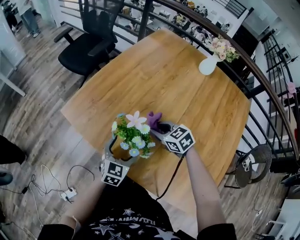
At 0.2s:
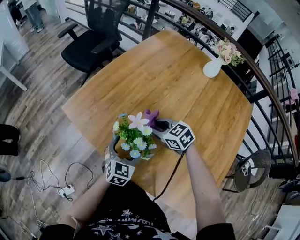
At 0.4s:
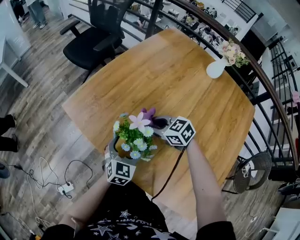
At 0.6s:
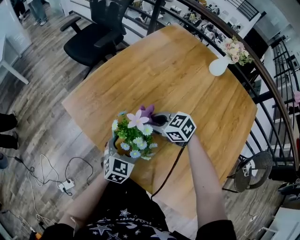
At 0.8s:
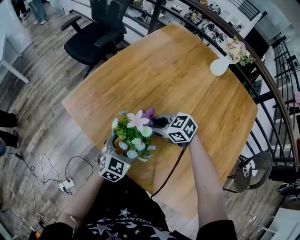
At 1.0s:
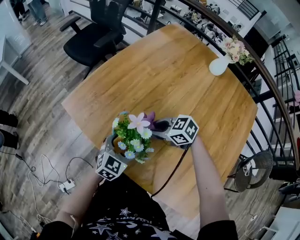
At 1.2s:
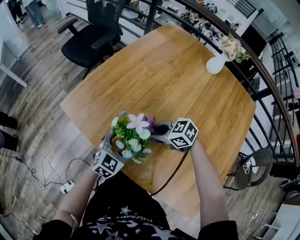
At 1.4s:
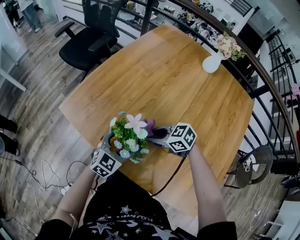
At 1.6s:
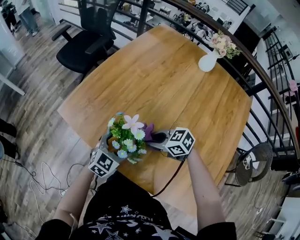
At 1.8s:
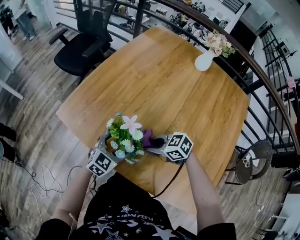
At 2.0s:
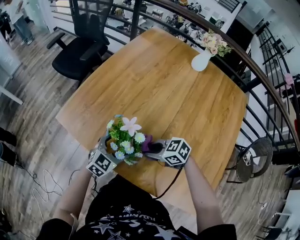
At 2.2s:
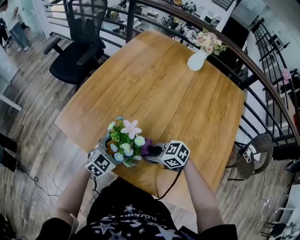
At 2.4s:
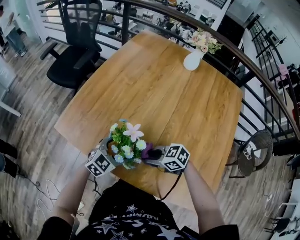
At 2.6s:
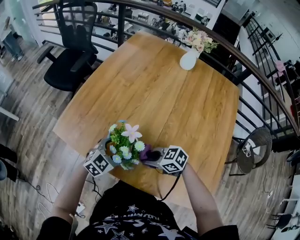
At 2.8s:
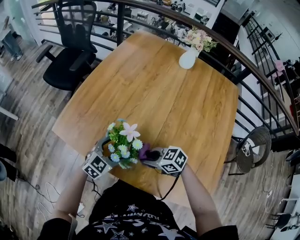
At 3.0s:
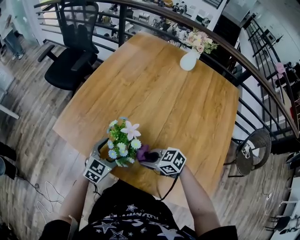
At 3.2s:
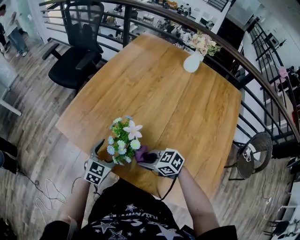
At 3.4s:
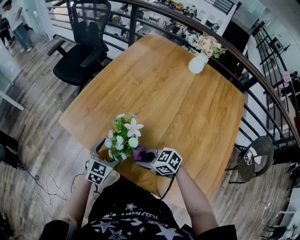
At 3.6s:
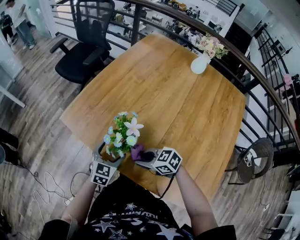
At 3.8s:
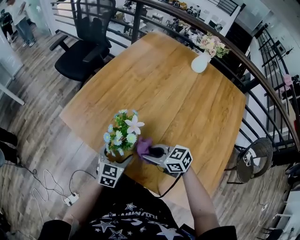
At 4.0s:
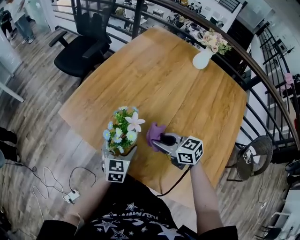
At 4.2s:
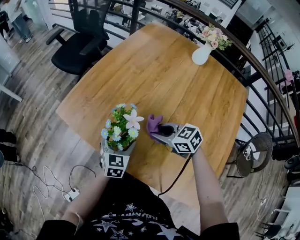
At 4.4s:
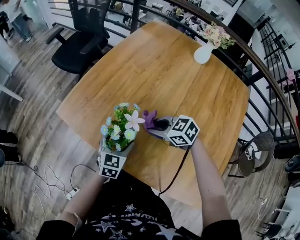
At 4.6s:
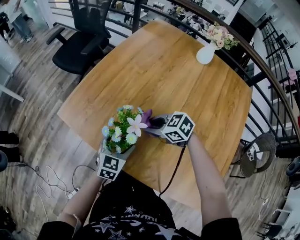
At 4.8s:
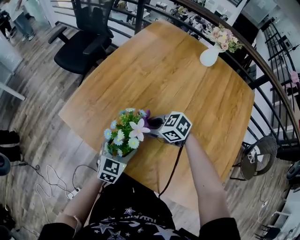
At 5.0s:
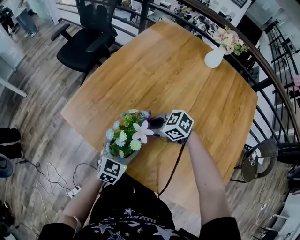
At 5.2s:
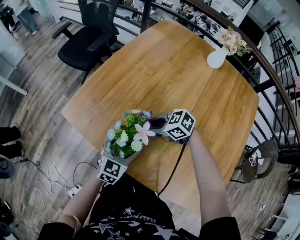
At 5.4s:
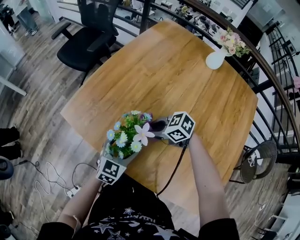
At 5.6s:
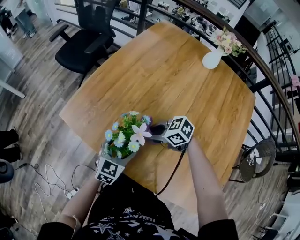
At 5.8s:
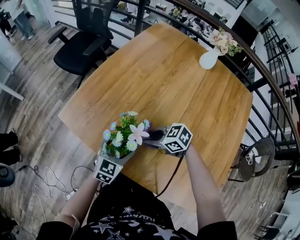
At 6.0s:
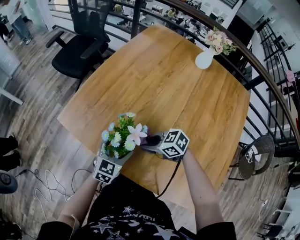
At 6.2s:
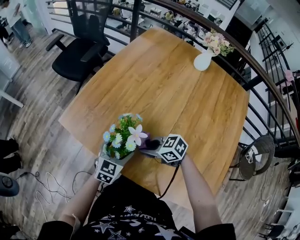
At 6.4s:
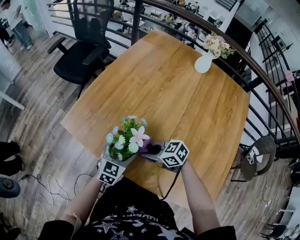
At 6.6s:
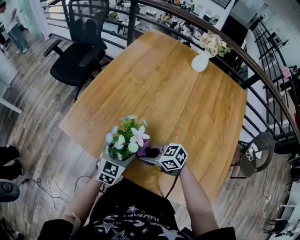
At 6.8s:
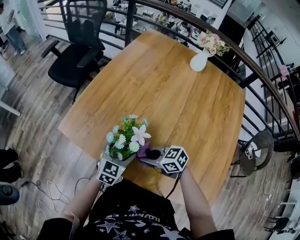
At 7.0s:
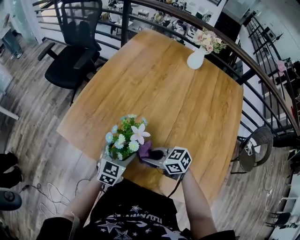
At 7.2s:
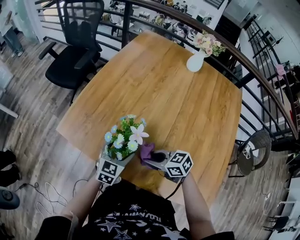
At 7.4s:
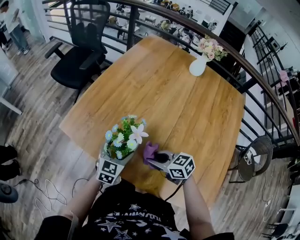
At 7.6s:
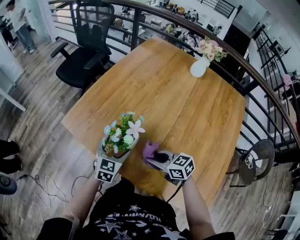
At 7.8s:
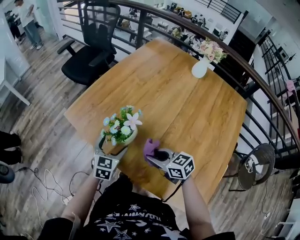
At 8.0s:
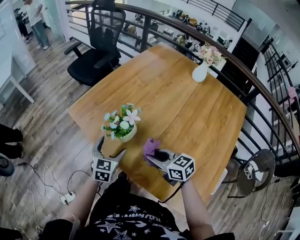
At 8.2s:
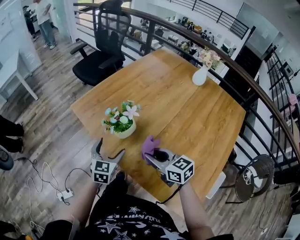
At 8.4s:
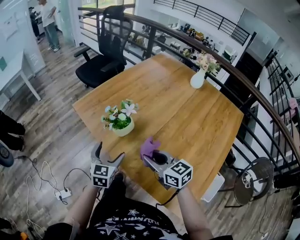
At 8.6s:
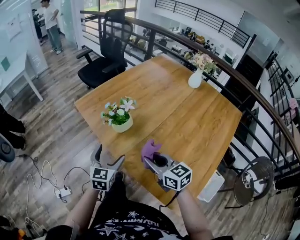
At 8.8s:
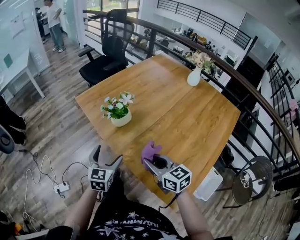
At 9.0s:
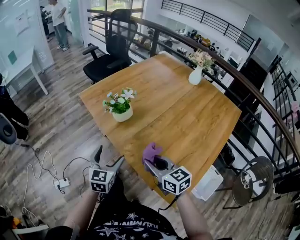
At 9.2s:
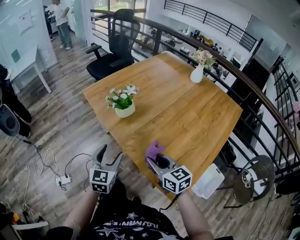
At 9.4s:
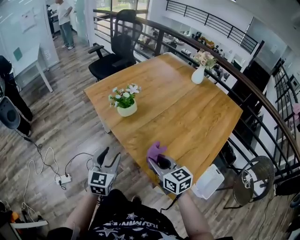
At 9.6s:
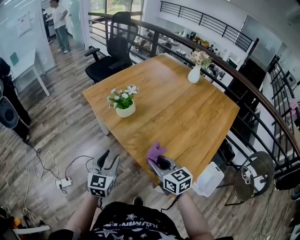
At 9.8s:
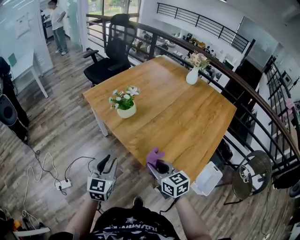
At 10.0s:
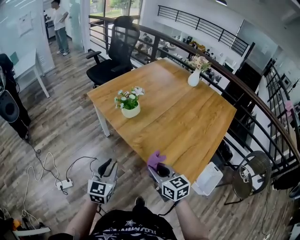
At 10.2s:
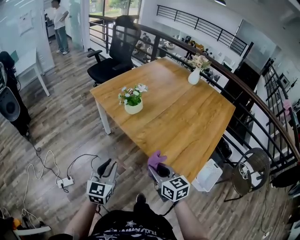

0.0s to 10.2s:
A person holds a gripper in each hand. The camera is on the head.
0.0s to 1.4s: The right gripper changes place by approximately 5 cm, and rotates about 20 degrees.
1.4s to 3.0s: The right gripper shifts by some 10 cm.
3.0s to 4.4s: The right gripper goes some 10 cm forward; the left gripper swivels about 20 degrees.
4.4s to 5.8s: The right gripper ends up roughly 5 cm from where it was.
5.8s to 7.2s: The right gripper shifts about 5 cm backward, and turns by approximately 20 degrees.
7.2s to 8.8s: The left gripper travels backward by some 20 cm, and swivels roughly 40 degrees, while the right gripper shifts about 25 cm backward and upward, and swivels some 20 degrees.
8.8s to 10.2s: Both grippers travel together backward and to the left, roughly 20 cm. The left gripper closes its fingers.

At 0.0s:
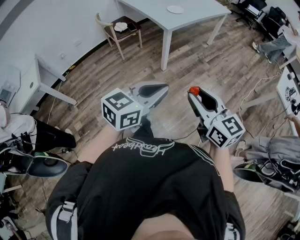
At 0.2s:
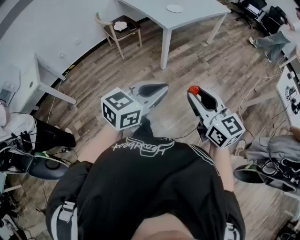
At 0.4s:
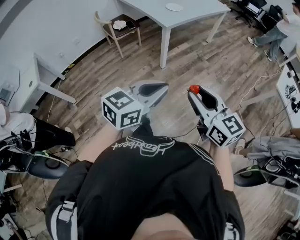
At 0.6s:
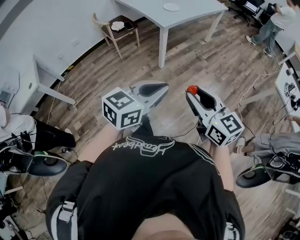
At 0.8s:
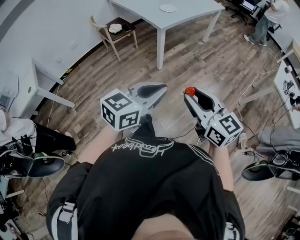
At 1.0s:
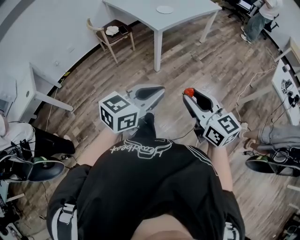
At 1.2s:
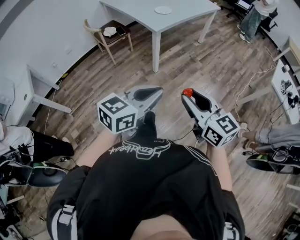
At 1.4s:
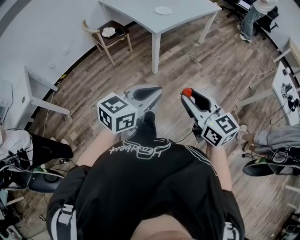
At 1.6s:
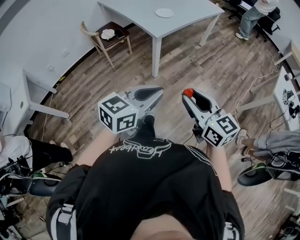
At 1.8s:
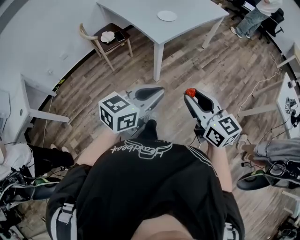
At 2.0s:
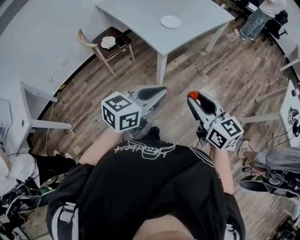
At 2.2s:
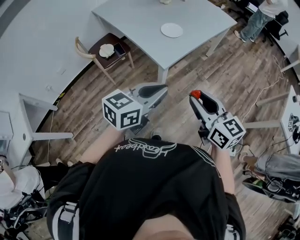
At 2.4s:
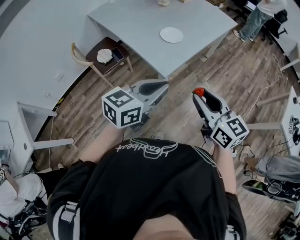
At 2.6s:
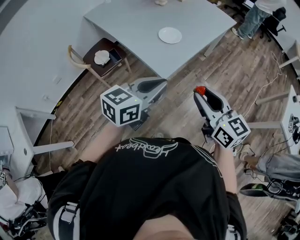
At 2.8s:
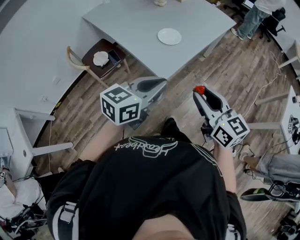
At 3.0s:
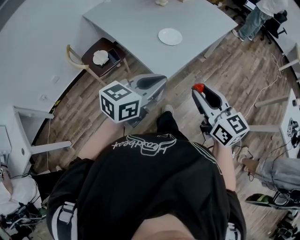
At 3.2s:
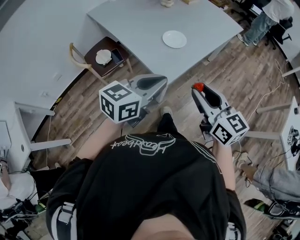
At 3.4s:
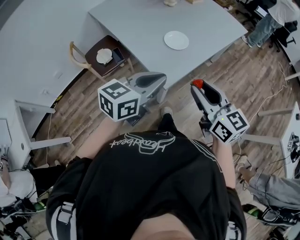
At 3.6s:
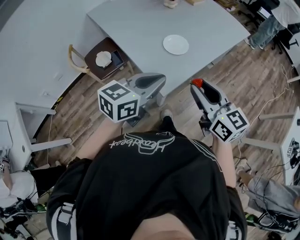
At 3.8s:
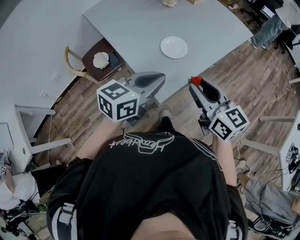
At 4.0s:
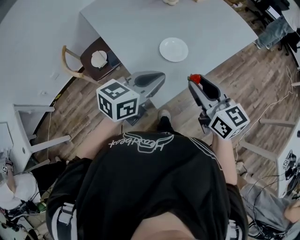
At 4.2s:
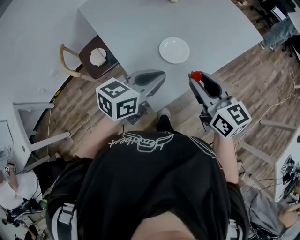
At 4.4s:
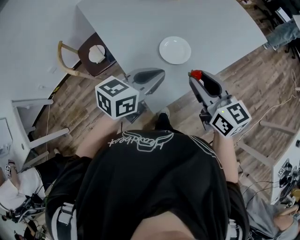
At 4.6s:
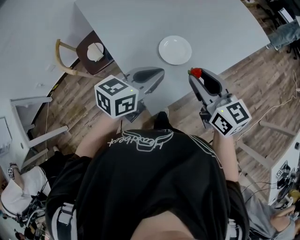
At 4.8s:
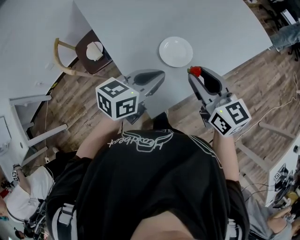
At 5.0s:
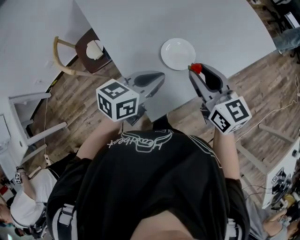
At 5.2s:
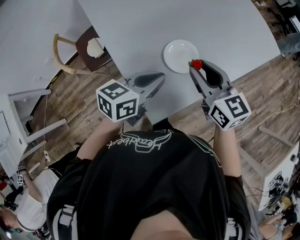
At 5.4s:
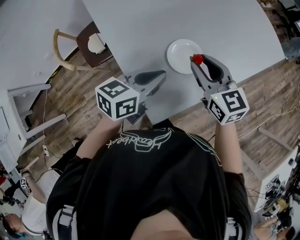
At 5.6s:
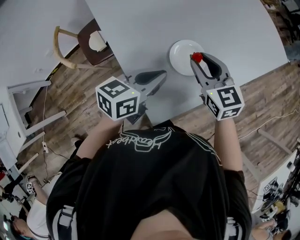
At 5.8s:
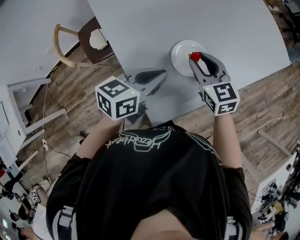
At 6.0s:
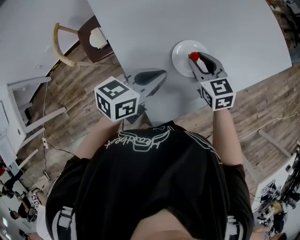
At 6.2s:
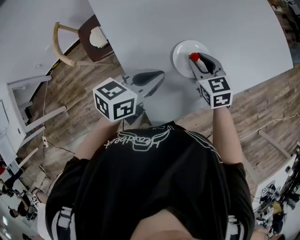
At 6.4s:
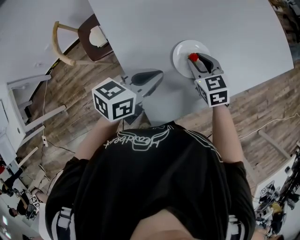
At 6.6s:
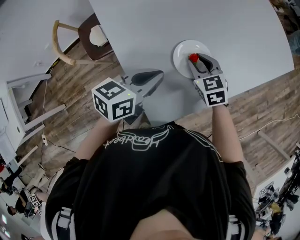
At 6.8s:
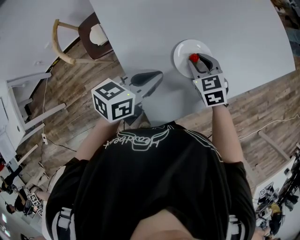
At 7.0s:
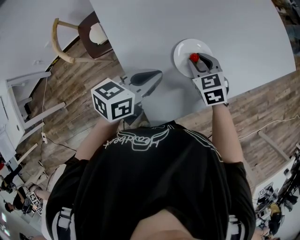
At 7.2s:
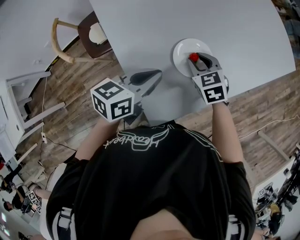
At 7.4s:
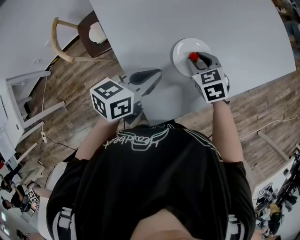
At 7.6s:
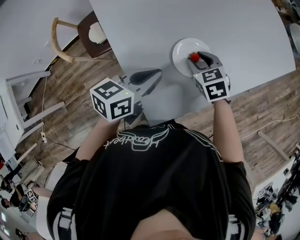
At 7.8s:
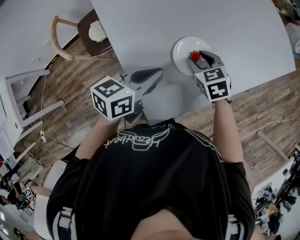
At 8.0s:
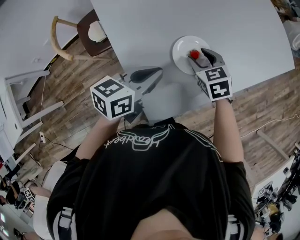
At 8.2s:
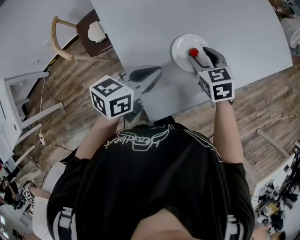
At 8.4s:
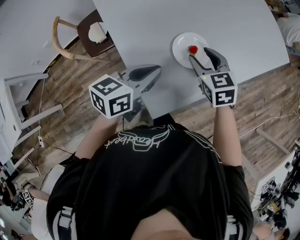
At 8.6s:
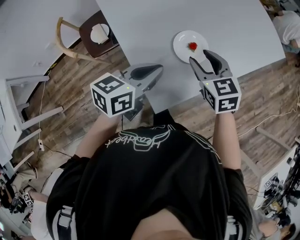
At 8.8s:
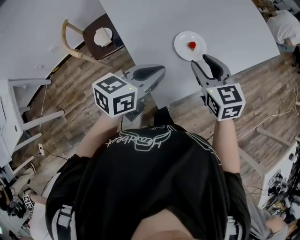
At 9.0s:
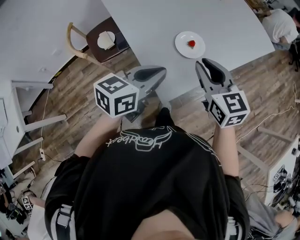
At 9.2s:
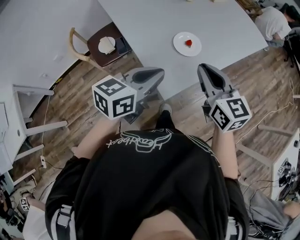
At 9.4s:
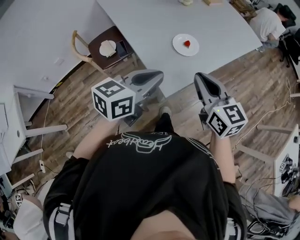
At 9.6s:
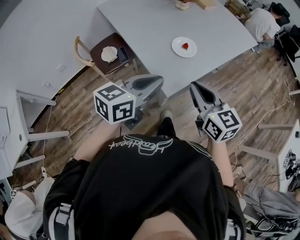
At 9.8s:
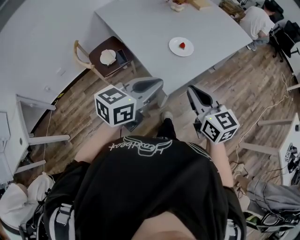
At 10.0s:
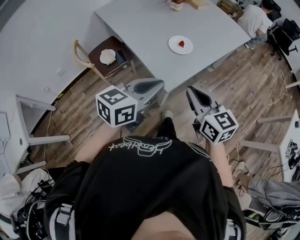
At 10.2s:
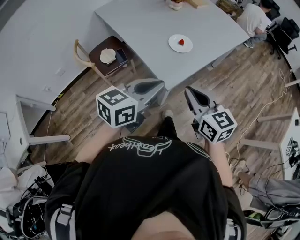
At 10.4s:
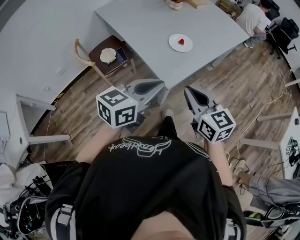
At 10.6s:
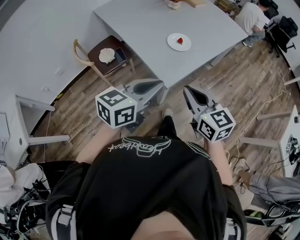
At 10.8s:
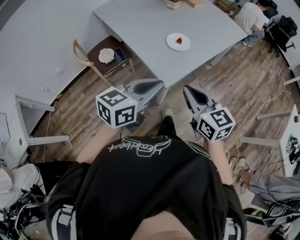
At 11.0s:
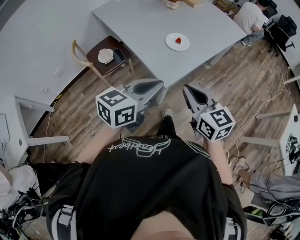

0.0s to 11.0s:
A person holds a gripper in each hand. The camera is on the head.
0.0s to 1.6s: The two grippers go about 10 cm forward.
1.6s to 3.2s: The two grippers travel together, forward, some 40 cm.
3.2s to 4.8s: The grippers both shift forward by about 30 cm.
4.8s to 6.2s: The left gripper travels downward and forward by roughly 10 cm. Meanwhile the right gripper shifts about 20 cm downward and forward, and rotates approximately 30 degrees.
6.2s to 7.8s: The grippers move only a little.
7.8s to 9.4s: Both grippers move backward and upward, some 30 cm. The right gripper tilts its fingers roughly 40 degrees upward, and closes its fingers.
9.4s to 11.0s: The two grippers go some 10 cm backward.

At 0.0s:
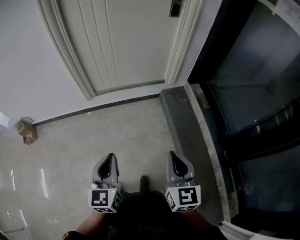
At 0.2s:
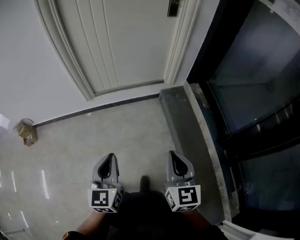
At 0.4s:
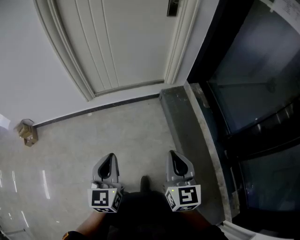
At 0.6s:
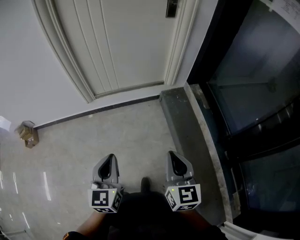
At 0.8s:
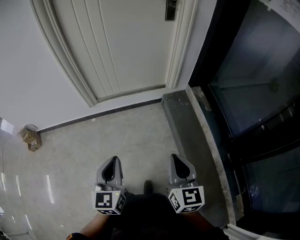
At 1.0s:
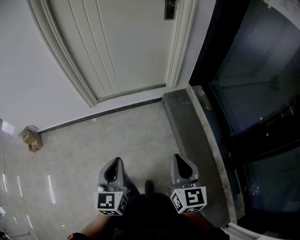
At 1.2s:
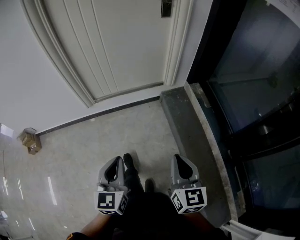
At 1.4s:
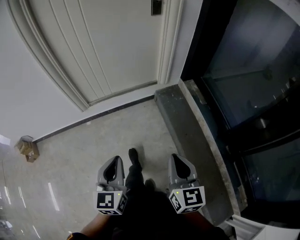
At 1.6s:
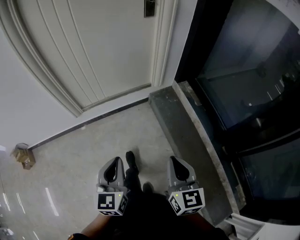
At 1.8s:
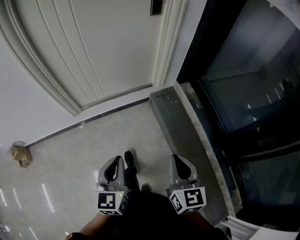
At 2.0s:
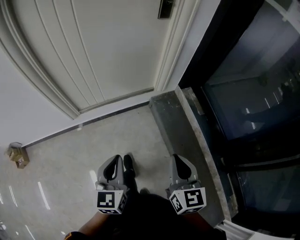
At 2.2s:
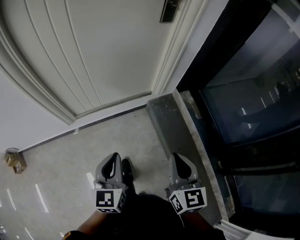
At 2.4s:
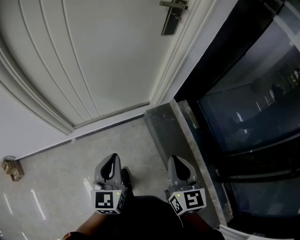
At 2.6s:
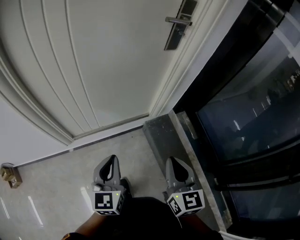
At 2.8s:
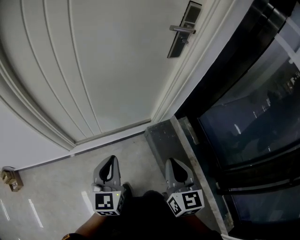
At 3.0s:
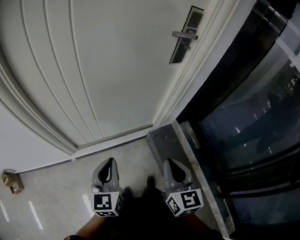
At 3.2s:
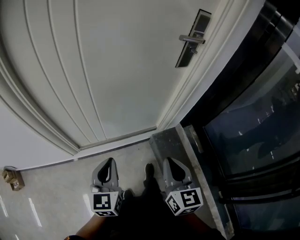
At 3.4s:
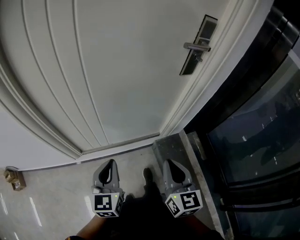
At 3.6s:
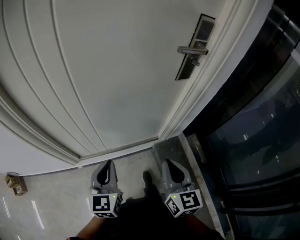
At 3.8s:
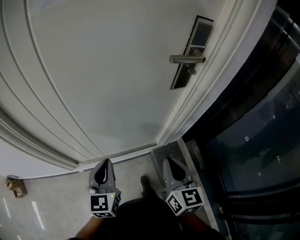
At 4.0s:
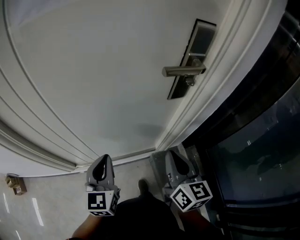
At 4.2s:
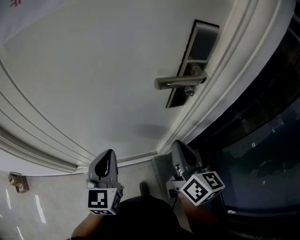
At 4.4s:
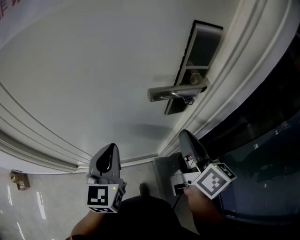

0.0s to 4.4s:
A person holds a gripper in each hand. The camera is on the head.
0.0s to 1.4s: The left gripper goes roughly 5 cm forward.
1.4s to 3.0s: Both grippers move forward, about 35 cm.
3.0s to 4.4s: The grippers both shift forward and to the right by roughly 35 cm. The right gripper swivels some 40 degrees.
